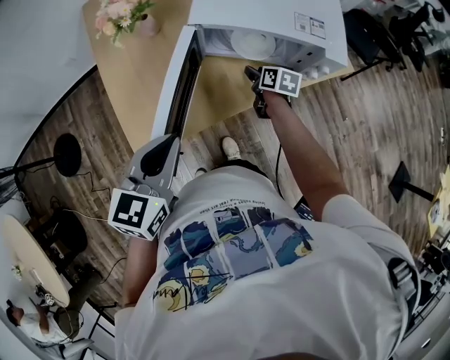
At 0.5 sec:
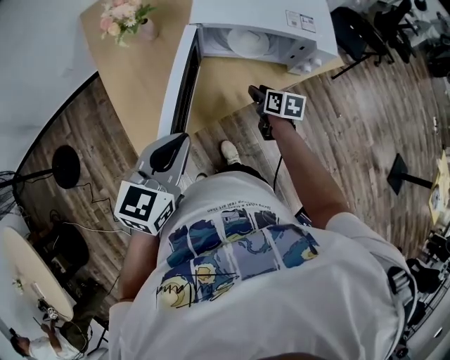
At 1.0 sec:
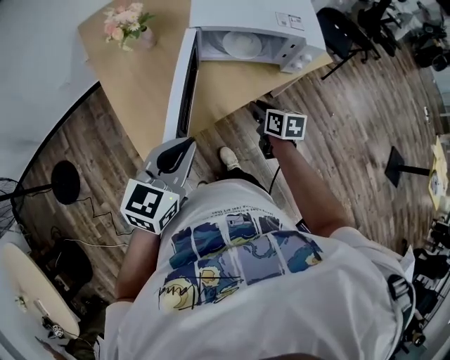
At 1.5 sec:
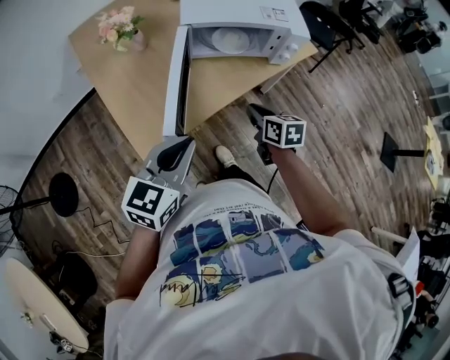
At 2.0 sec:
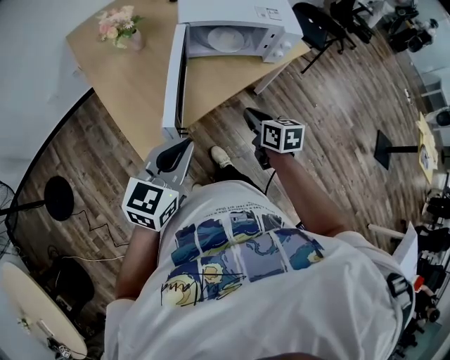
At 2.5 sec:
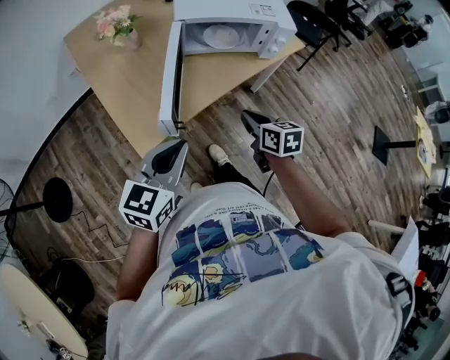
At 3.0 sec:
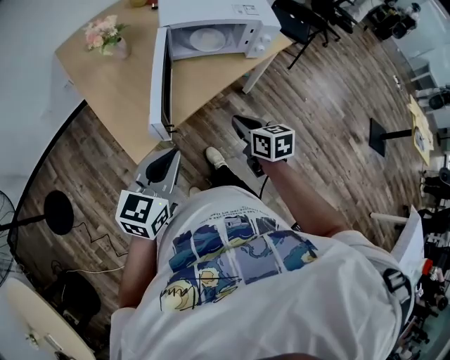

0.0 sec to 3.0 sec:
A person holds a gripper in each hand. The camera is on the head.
0.0 sec to 1.5 sec: The right gripper moves backward and upward, about 25 cm, and closes its fingers; the left gripper heads backward, covering roughly 10 cm.
1.5 sec to 3.0 sec: The grippers both shift backward by some 10 cm.

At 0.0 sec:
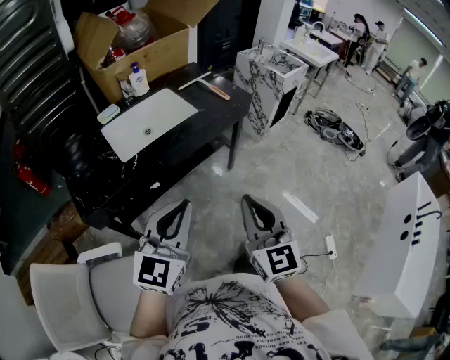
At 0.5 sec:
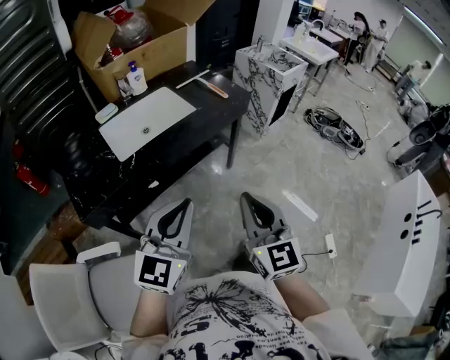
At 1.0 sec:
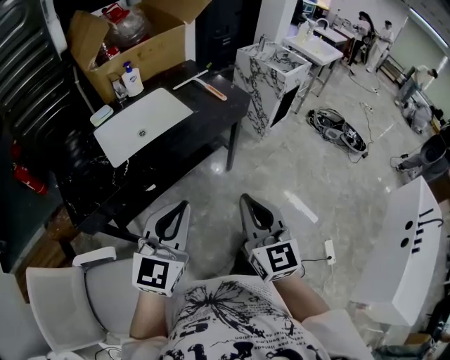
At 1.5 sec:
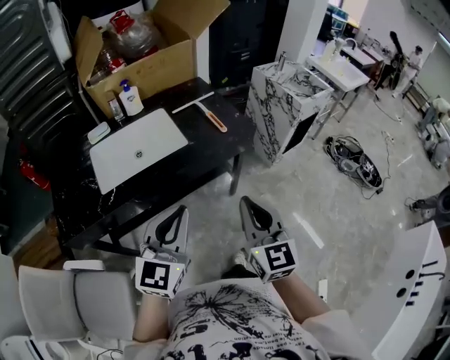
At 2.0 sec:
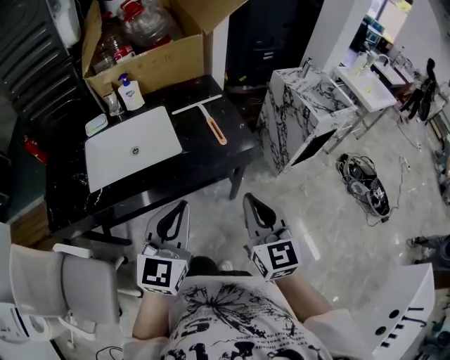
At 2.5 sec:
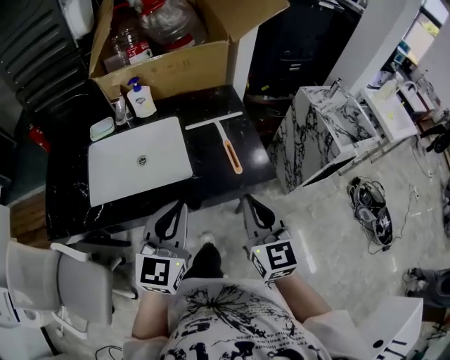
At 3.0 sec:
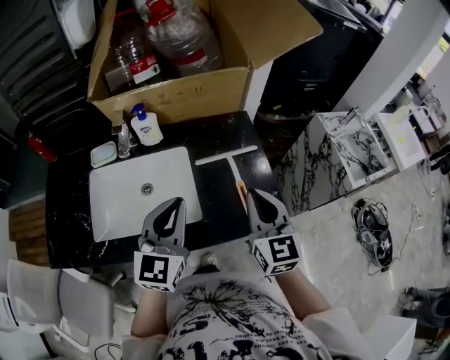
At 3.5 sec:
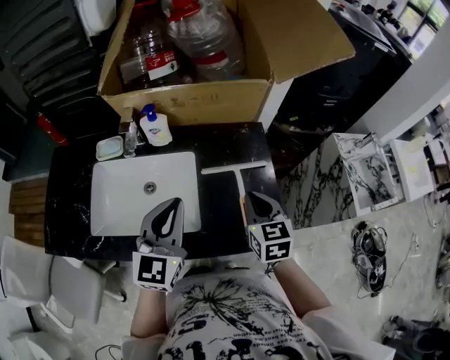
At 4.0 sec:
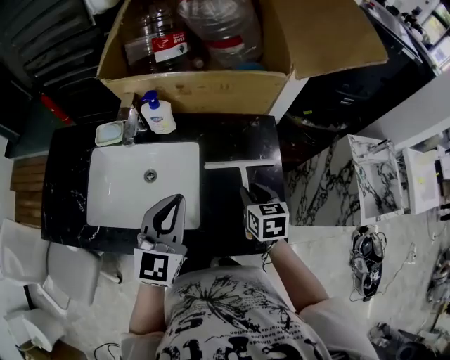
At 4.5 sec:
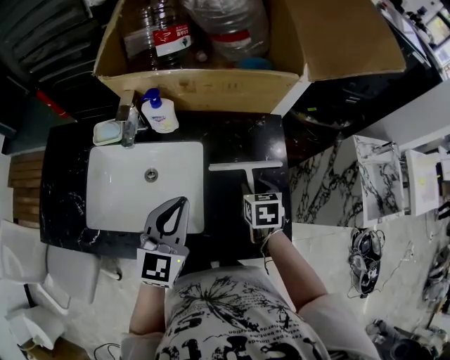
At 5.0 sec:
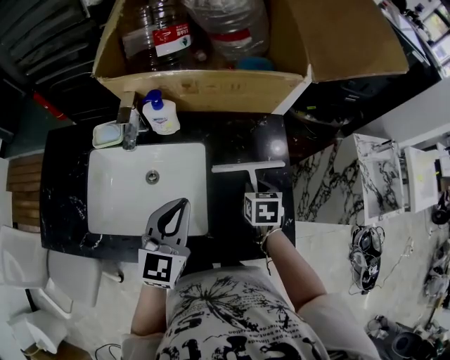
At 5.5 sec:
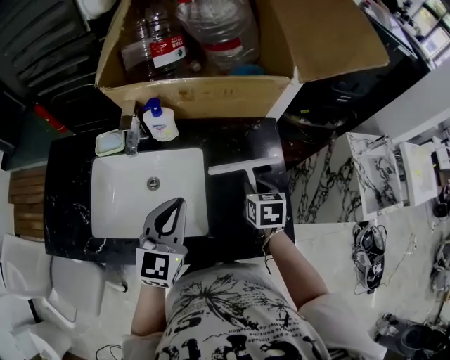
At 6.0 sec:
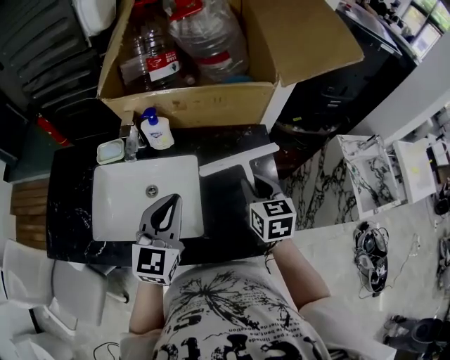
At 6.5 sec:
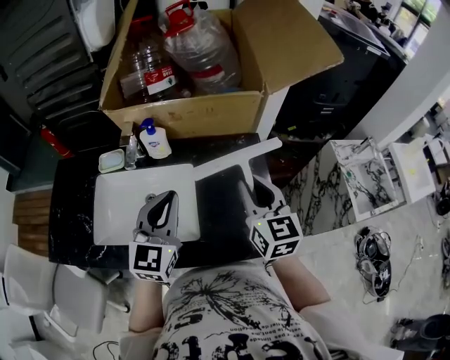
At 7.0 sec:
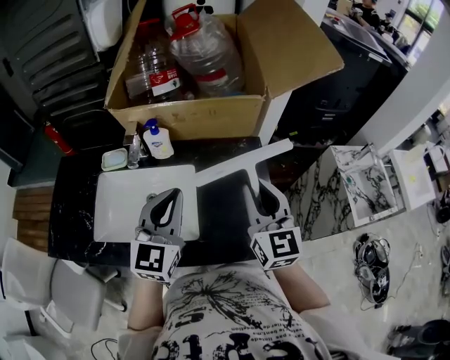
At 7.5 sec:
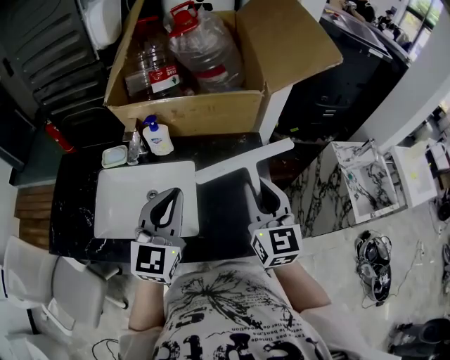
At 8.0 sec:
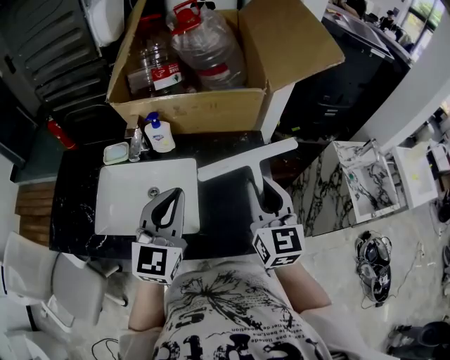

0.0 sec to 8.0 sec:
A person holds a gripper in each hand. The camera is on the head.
0.0 sec to 2.0 sec: Both grippers travel together forward and to the right, about 35 cm. The left gripper turns by approximately 20 degrees.
2.0 sec to 4.0 sec: The right gripper is displaced forward and downward by about 50 cm, angles its fingers downward, by approximately 40 degrees, and opens, while the left gripper travels forward by roughly 35 cm, and changes its angle by approximately 20 degrees.
4.0 sec to 6.0 sec: The right gripper heads upward, covering roughly 10 cm.
6.0 sec to 8.0 sec: The right gripper travels upward and backward by some 15 cm, and changes its angle by roughly 30 degrees. Meanwhile the left gripper moves upward, roughly 5 cm.

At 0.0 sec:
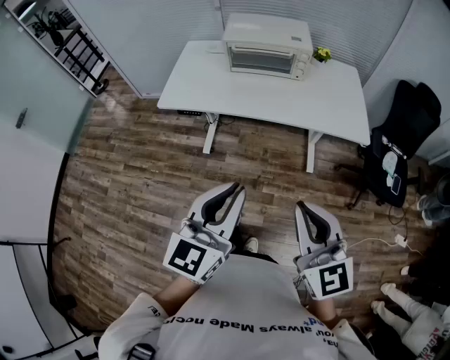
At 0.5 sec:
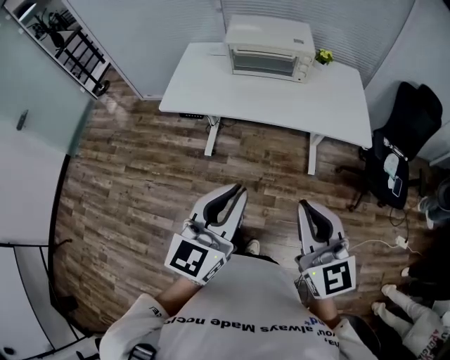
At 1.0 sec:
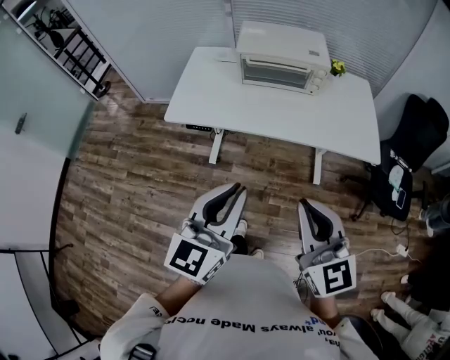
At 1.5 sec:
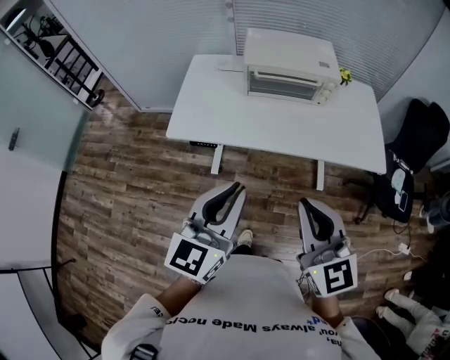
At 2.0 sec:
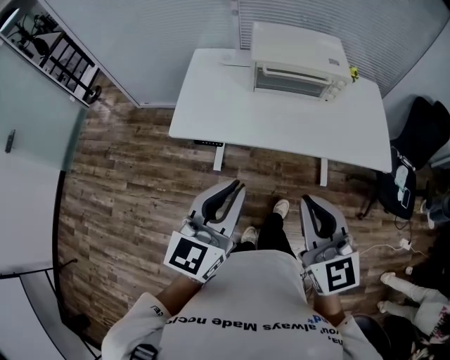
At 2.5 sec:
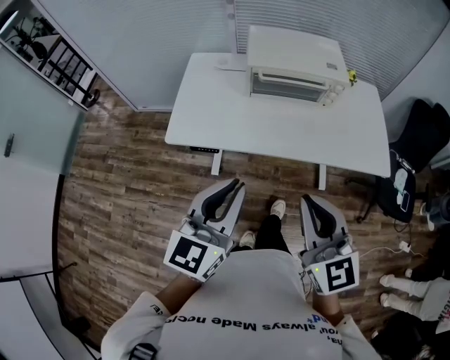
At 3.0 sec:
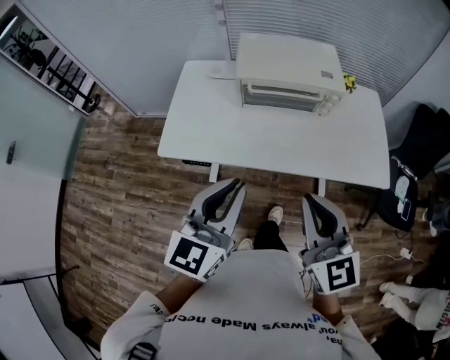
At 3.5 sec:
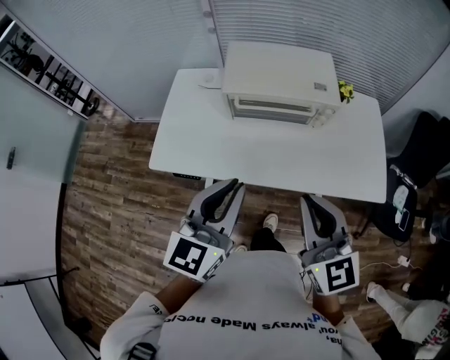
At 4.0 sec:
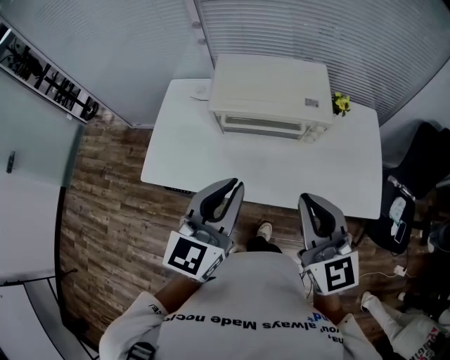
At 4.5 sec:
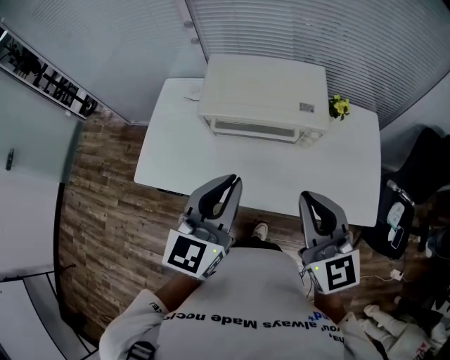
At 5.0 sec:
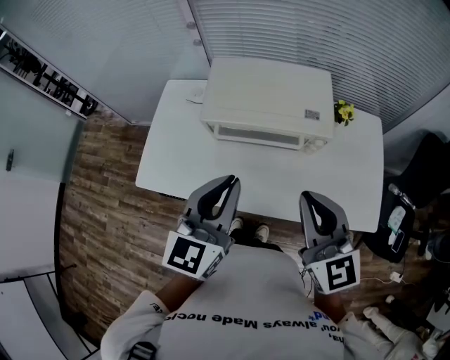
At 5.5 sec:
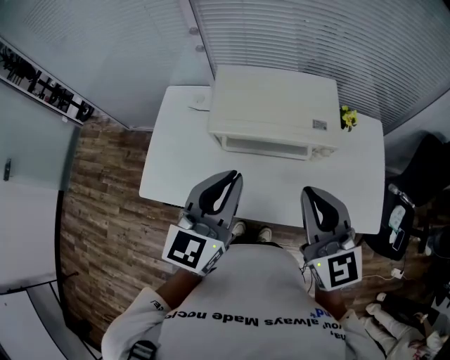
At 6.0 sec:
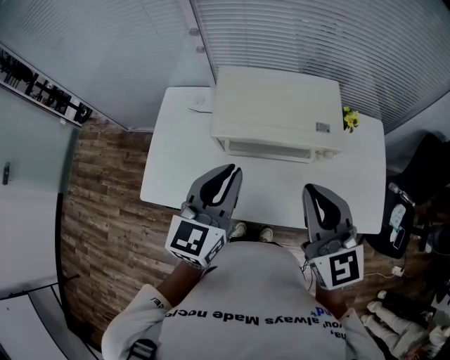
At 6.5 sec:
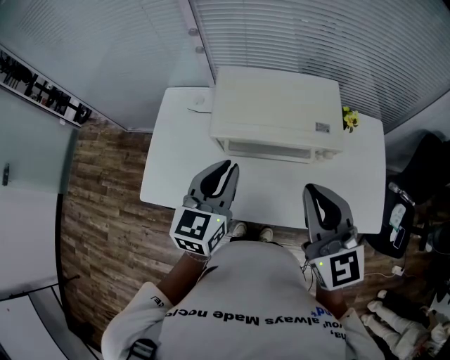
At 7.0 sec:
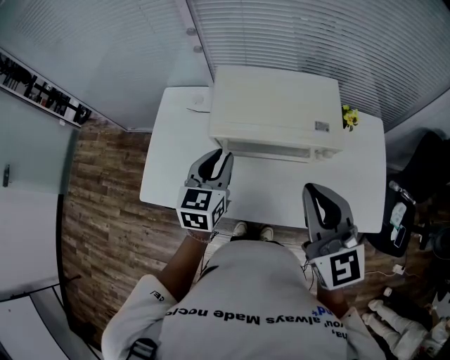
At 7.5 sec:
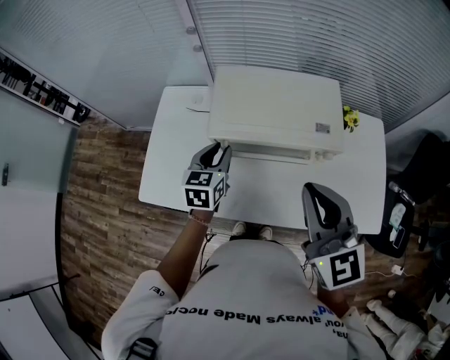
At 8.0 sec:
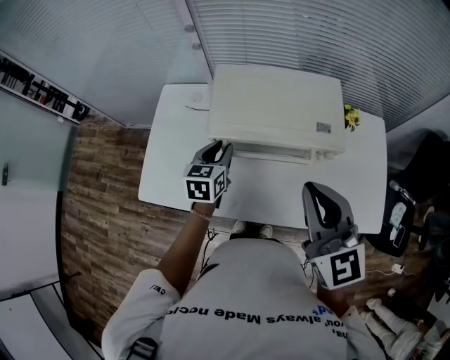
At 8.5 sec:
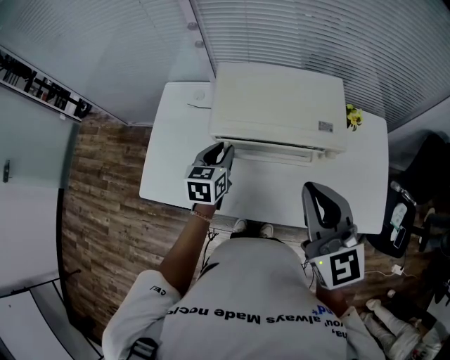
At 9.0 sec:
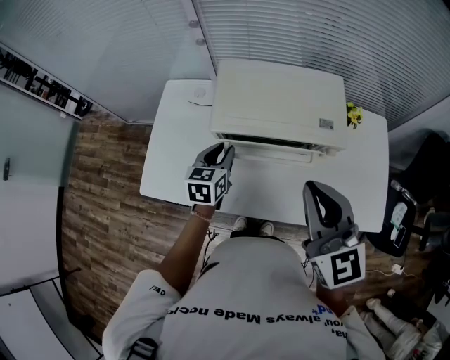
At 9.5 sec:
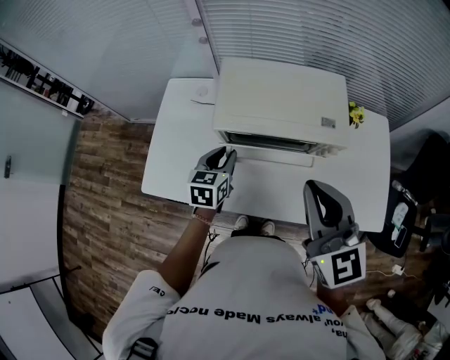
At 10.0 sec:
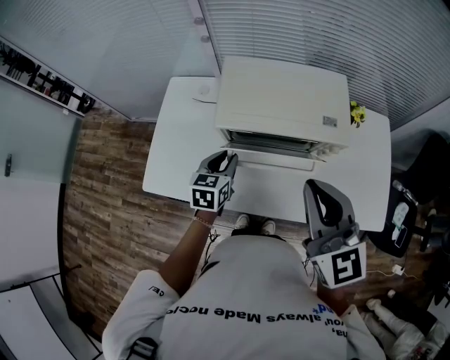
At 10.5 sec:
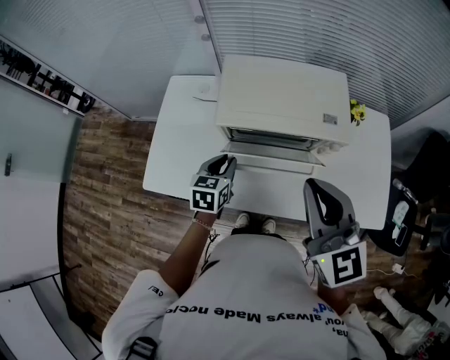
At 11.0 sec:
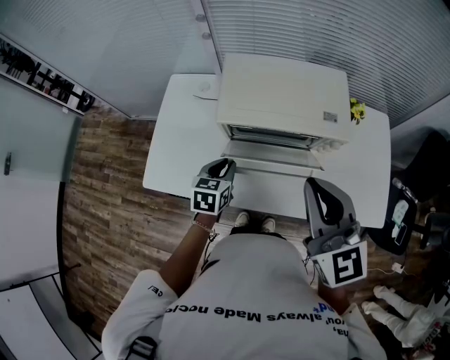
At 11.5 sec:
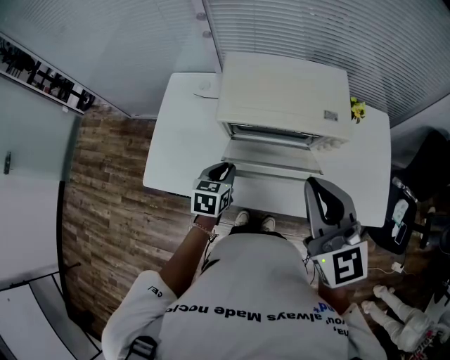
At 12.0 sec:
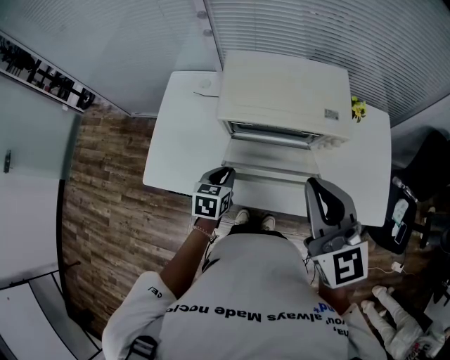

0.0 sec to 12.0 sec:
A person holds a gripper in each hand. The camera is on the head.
0.0 sec to 2.0 sec: Both grippers move forward and to the left, some 25 cm.
2.0 sec to 4.0 sec: Both grippers move forward and to the right, some 25 cm.
4.0 sec to 6.0 sec: Both grippers travel together forward, roughly 10 cm.
6.0 sec to 8.0 sec: The left gripper is displaced downward and forward by approximately 20 cm, and rotates approximately 20 degrees.
8.0 sec to 10.0 sec: The left gripper travels backward by some 5 cm.
10.0 sec to 12.0 sec: The left gripper shifts approximately 5 cm backward.

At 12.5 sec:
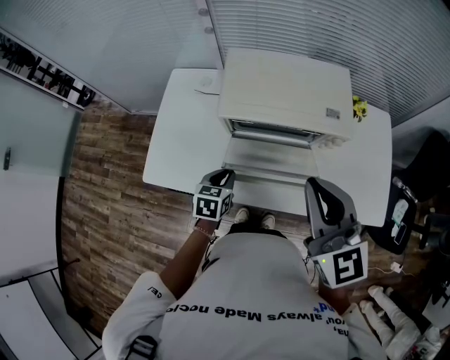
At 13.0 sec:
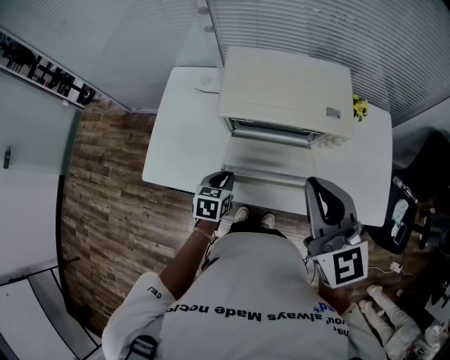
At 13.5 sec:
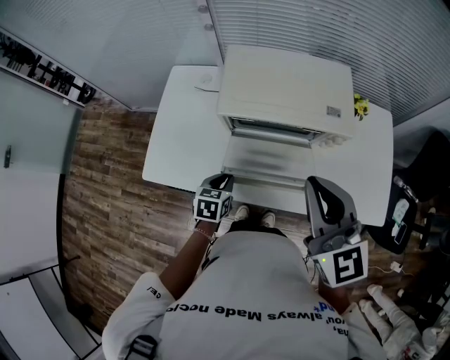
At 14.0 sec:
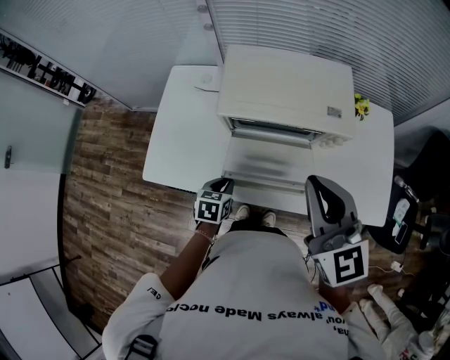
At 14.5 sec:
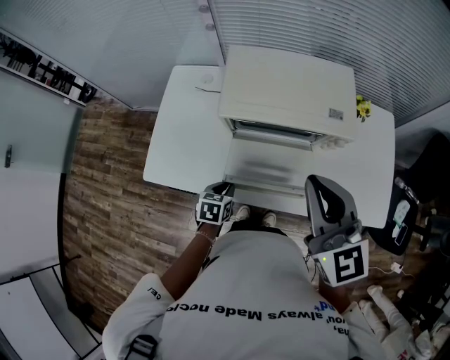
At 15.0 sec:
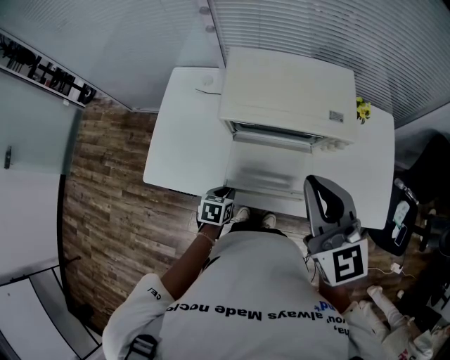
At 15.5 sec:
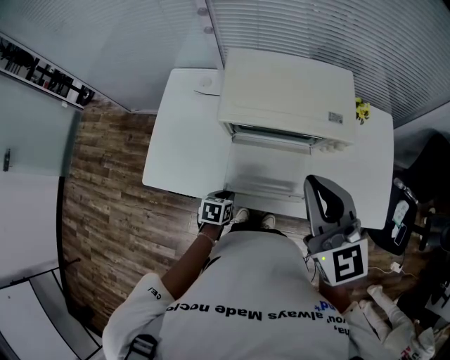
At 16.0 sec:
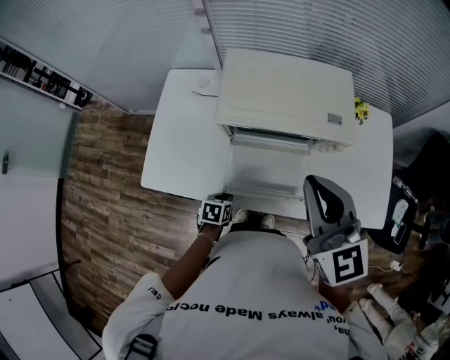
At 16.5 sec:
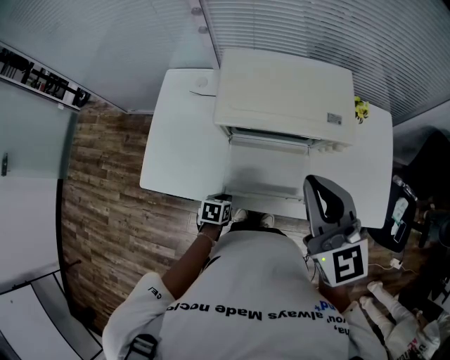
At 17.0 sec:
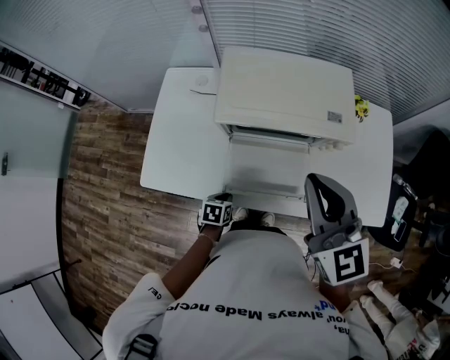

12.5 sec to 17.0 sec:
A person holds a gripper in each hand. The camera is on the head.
12.5 sec to 14.5 sec: The left gripper shifts some 5 cm downward.
14.5 sec to 17.0 sec: The left gripper heads downward, covering approximately 10 cm.
